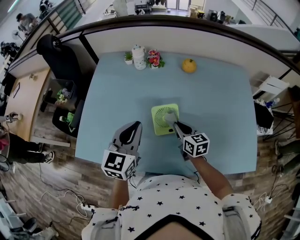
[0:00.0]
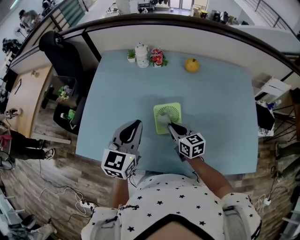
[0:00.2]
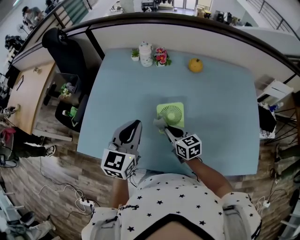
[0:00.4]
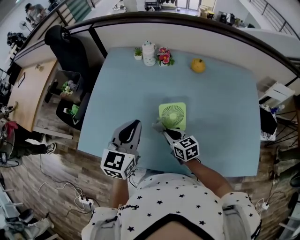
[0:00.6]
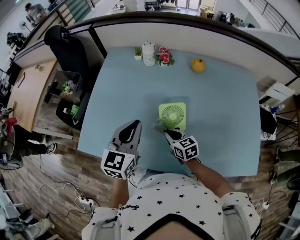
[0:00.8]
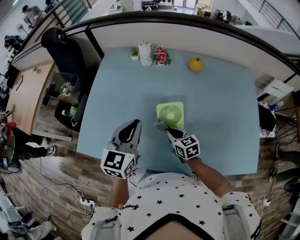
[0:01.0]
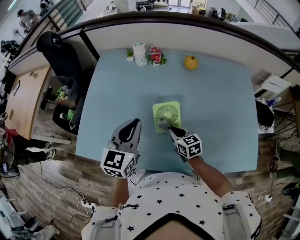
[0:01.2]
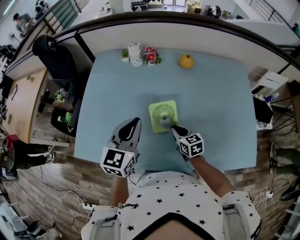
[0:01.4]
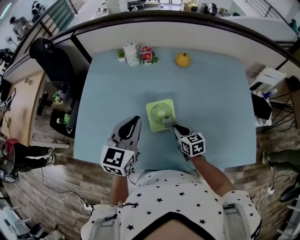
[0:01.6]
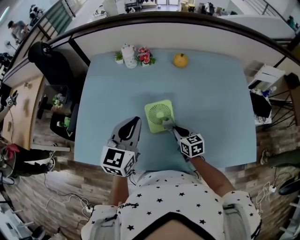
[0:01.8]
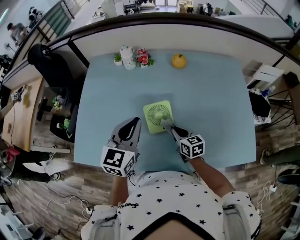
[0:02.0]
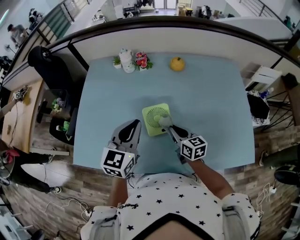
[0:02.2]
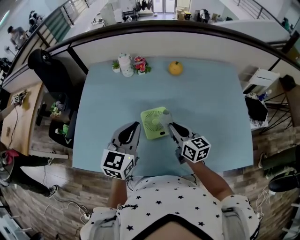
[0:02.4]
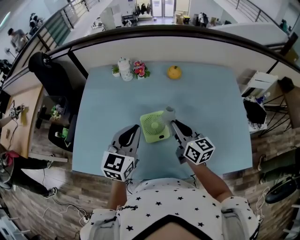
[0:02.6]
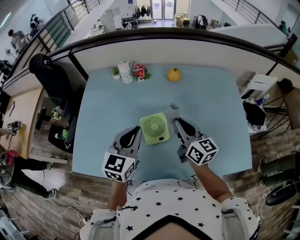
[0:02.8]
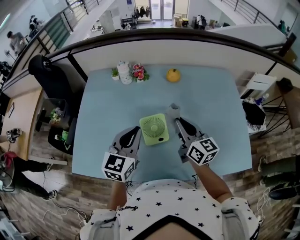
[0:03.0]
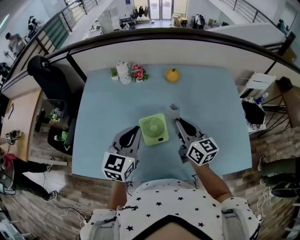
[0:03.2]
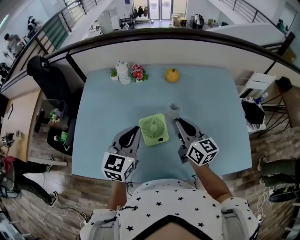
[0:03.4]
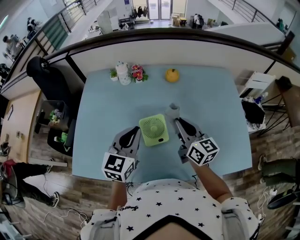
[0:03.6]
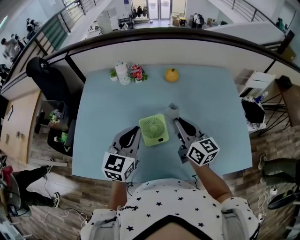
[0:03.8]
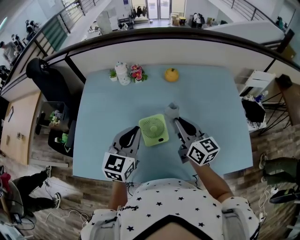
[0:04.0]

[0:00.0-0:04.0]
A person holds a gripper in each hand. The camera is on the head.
0:00.0 to 0:01.4: The right gripper goes to the left and returns, roughly 10 cm each way.
0:01.4 to 0:02.6: The right gripper moves upward, approximately 15 cm, and swivels some 30 degrees.
0:02.6 to 0:04.0: There are only small adjustments of the grippers.

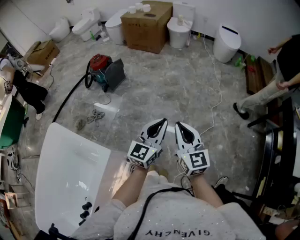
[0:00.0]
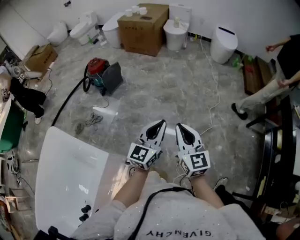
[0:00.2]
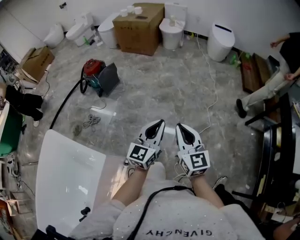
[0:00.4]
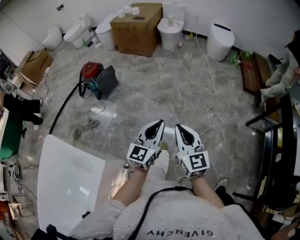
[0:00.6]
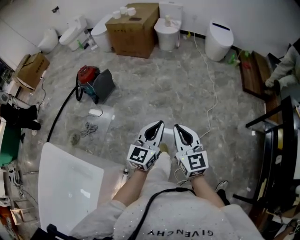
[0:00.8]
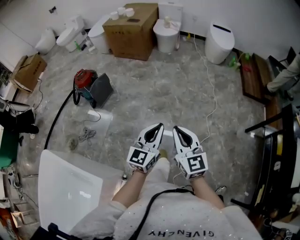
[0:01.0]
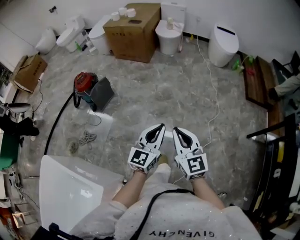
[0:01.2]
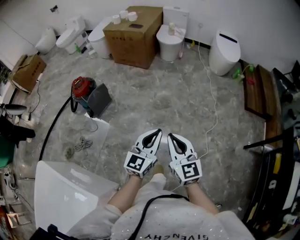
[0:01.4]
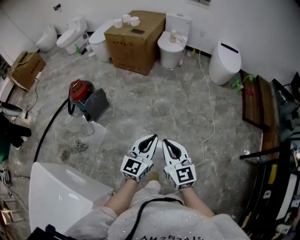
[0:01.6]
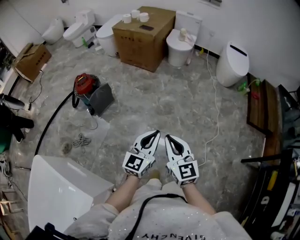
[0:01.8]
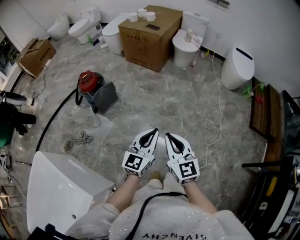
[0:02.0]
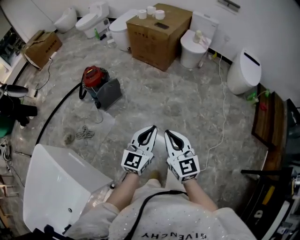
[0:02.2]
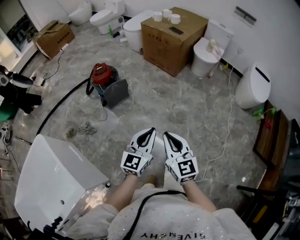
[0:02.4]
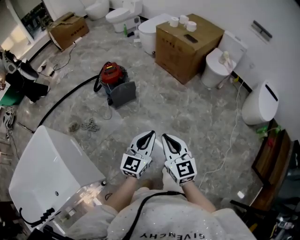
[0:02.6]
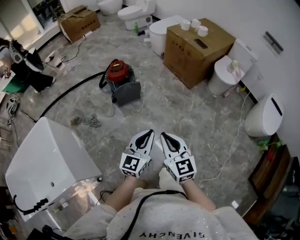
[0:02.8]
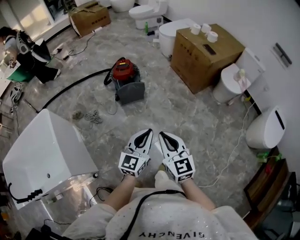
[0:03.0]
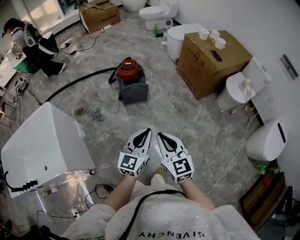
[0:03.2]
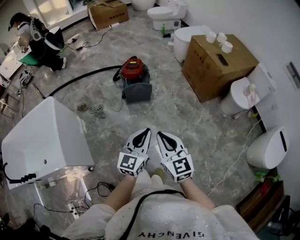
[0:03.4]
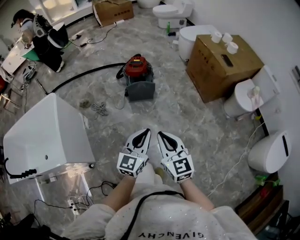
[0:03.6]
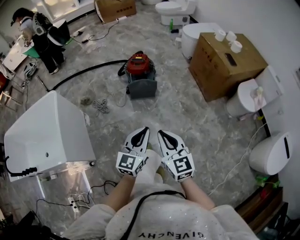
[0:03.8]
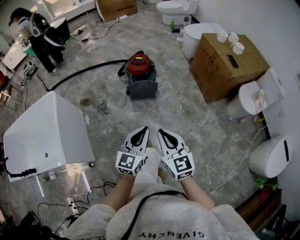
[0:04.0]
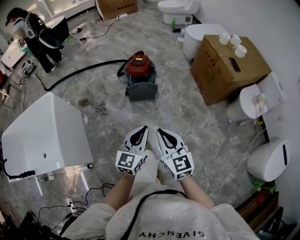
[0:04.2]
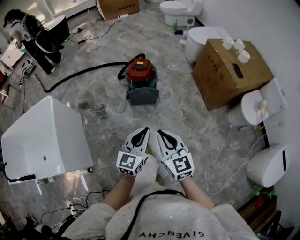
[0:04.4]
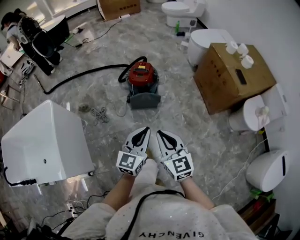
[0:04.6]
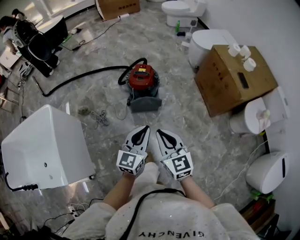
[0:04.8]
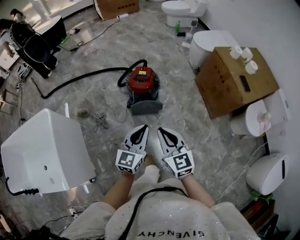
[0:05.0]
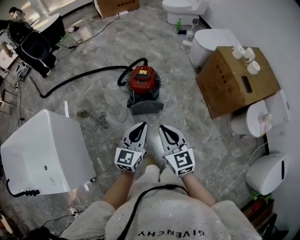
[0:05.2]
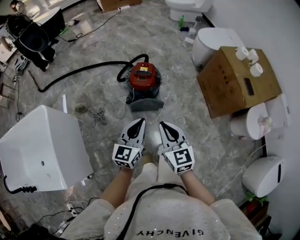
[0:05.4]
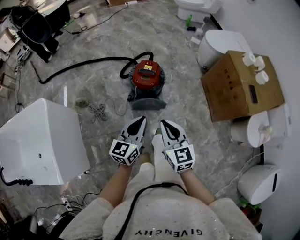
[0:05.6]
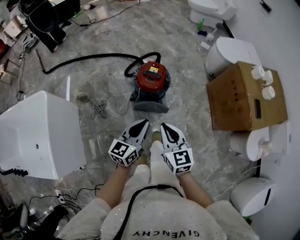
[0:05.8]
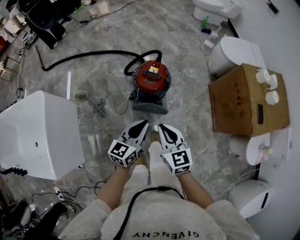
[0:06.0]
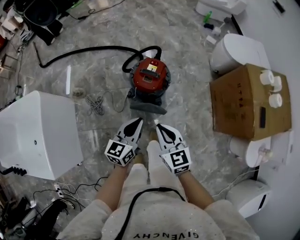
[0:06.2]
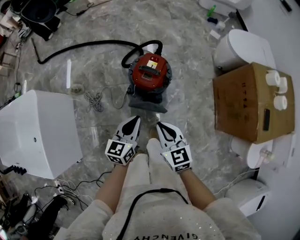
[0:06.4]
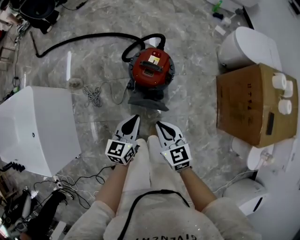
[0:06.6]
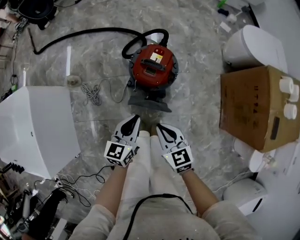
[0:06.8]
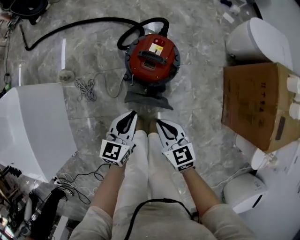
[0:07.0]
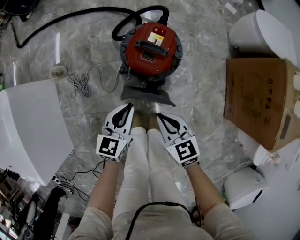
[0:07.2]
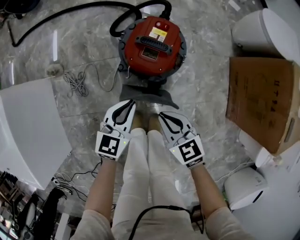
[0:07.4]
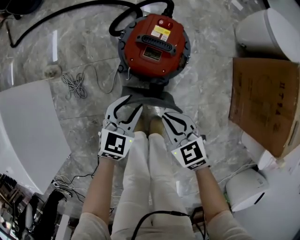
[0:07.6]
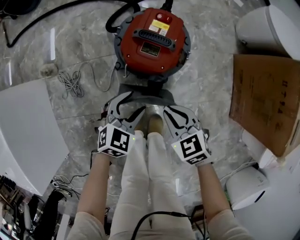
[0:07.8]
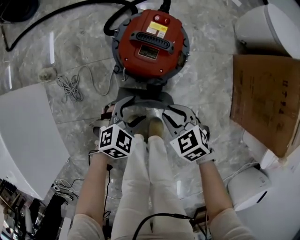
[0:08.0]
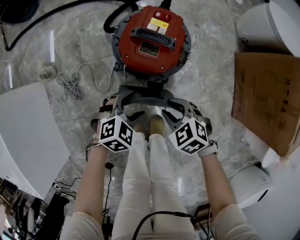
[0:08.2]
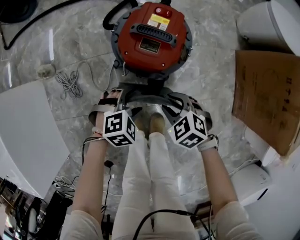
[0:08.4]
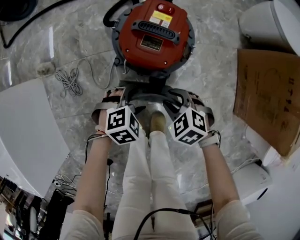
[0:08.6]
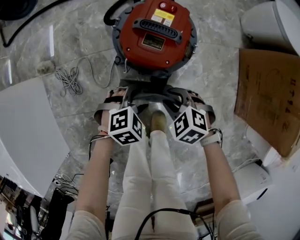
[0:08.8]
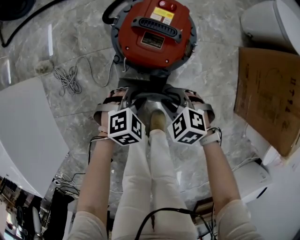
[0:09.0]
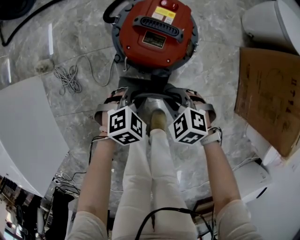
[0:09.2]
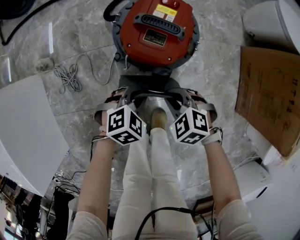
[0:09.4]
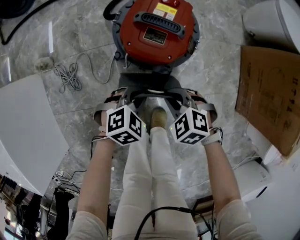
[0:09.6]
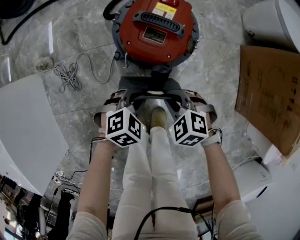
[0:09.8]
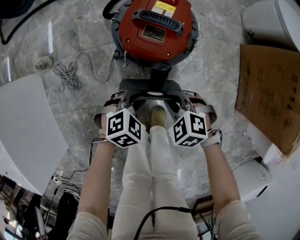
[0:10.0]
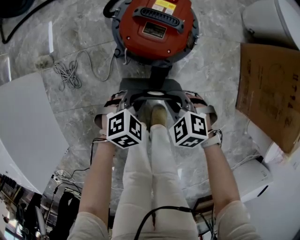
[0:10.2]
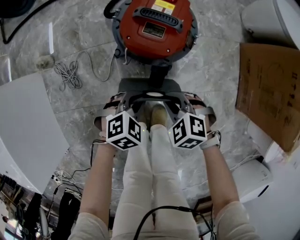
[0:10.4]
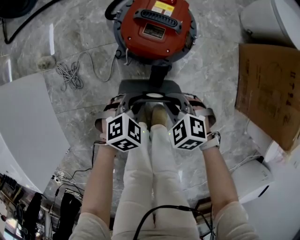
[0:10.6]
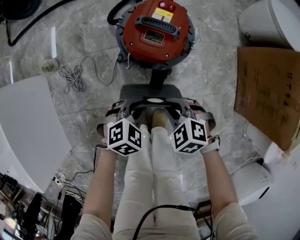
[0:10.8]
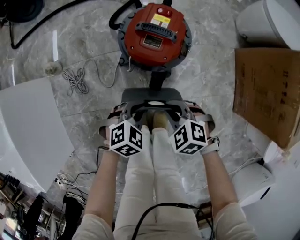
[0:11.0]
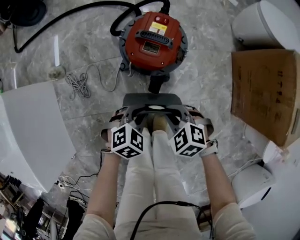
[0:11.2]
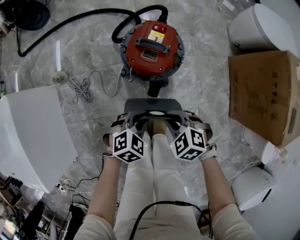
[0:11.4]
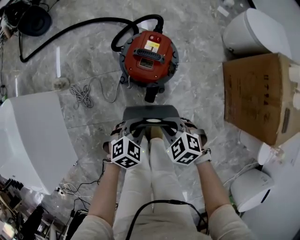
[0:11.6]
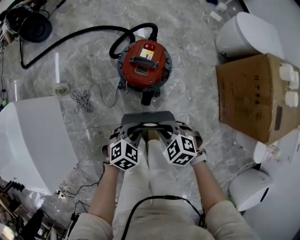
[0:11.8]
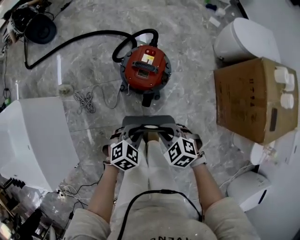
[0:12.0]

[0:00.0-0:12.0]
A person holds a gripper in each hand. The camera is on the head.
0:00.0 to 0:01.6: The grippers both shift forward by about 30 cm.
0:01.6 to 0:03.0: The right gripper changes place by approximately 25 cm, and turns by roughly 40 degrees; the left gripper changes place by some 20 cm, and rotates roughly 40 degrees.
0:03.0 to 0:04.4: Both grippers move forward, approximately 15 cm.
0:04.4 to 0:06.0: The grippers both shift forward by some 30 cm.
0:06.0 to 0:07.6: The left gripper is displaced downward and forward by some 30 cm, turns by about 30 degrees, and opens. The right gripper travels downward by approximately 30 cm, and changes its angle by roughly 30 degrees.
0:07.6 to 0:09.0: Both grippers travel together downward, approximately 10 cm. The left gripper changes its angle by roughly 40 degrees, and opens, then closes again. The right gripper turns by approximately 30 degrees, and opens.
0:09.0 to 0:10.4: The right gripper closes its fingers.
0:10.4 to 0:12.0: Both grippers move upward, some 20 cm.

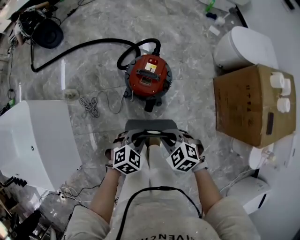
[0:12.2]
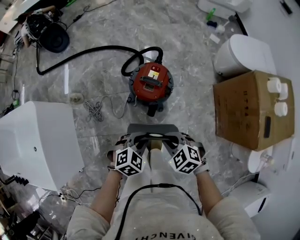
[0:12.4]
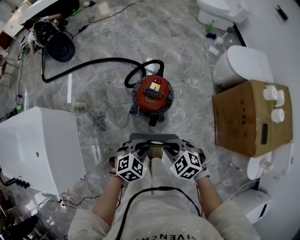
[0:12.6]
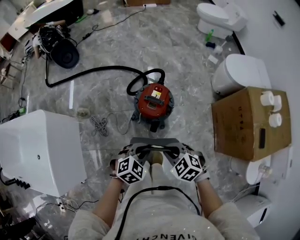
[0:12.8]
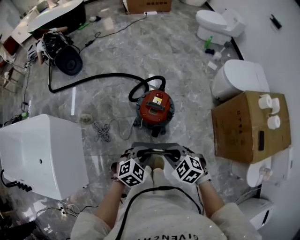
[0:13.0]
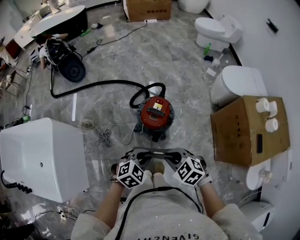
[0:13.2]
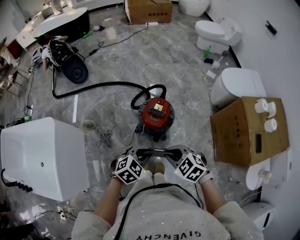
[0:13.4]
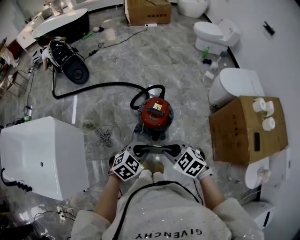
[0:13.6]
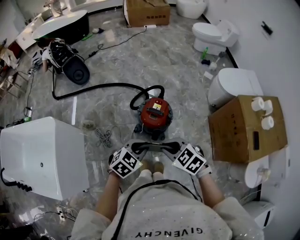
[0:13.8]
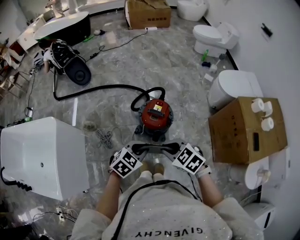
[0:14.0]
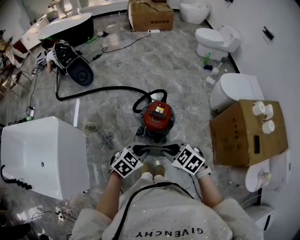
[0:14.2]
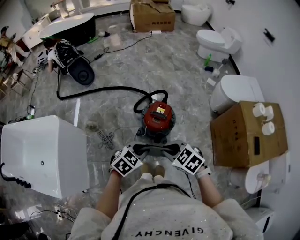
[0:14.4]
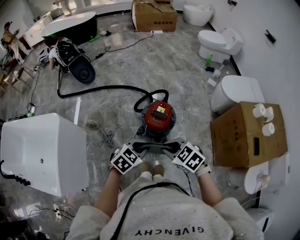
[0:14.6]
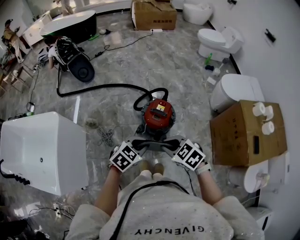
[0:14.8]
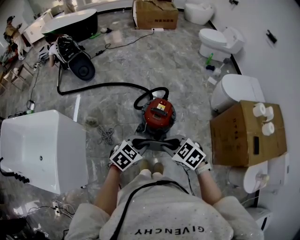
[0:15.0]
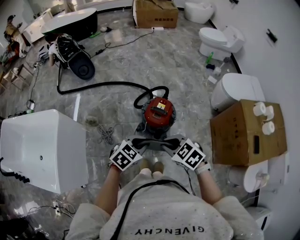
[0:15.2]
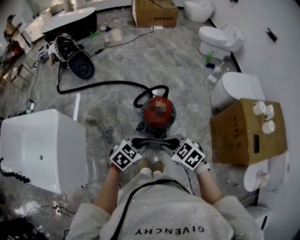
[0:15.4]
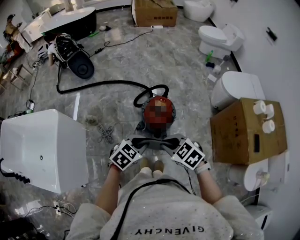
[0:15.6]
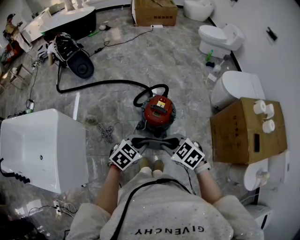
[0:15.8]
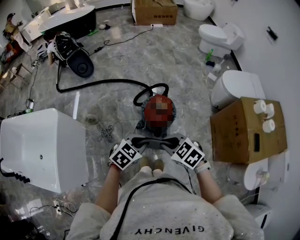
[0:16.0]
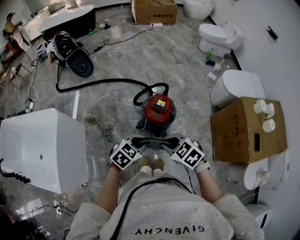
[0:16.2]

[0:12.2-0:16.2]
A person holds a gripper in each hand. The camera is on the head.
0:12.2 to 0:13.6: Both grippers travel together upward, some 20 cm.
0:13.6 to 0:16.2: There are only small adjustments of the grippers.

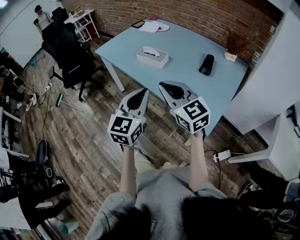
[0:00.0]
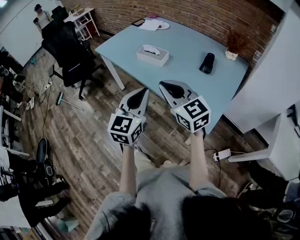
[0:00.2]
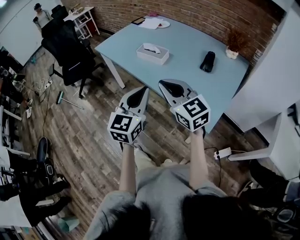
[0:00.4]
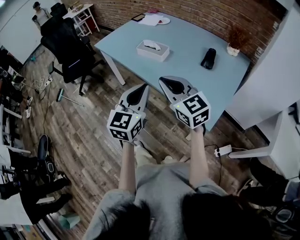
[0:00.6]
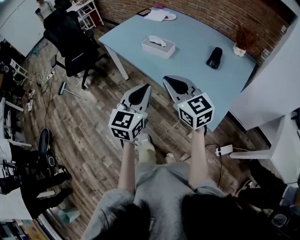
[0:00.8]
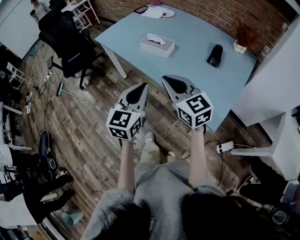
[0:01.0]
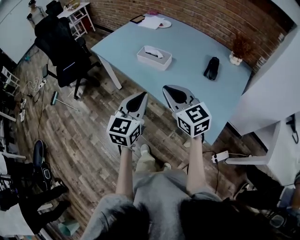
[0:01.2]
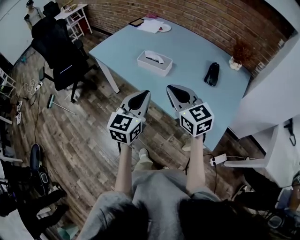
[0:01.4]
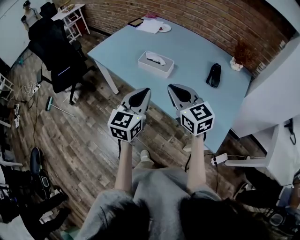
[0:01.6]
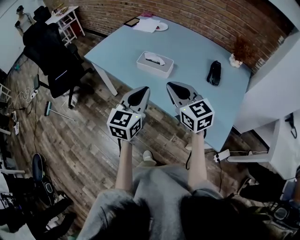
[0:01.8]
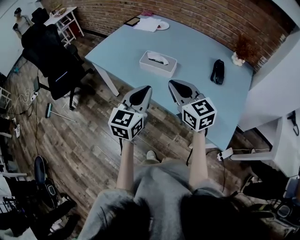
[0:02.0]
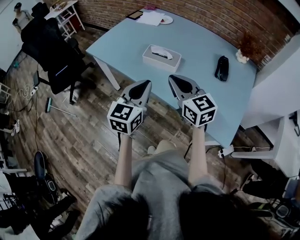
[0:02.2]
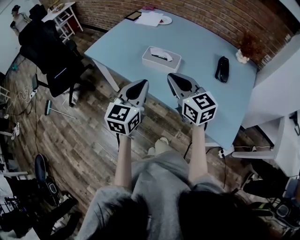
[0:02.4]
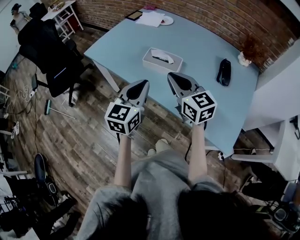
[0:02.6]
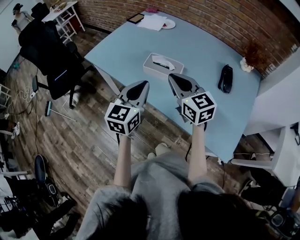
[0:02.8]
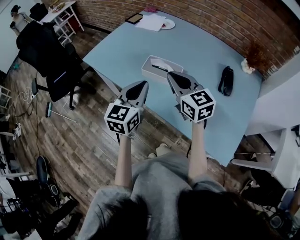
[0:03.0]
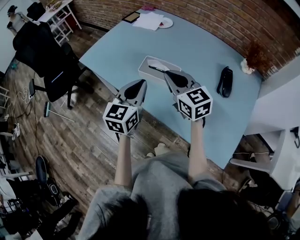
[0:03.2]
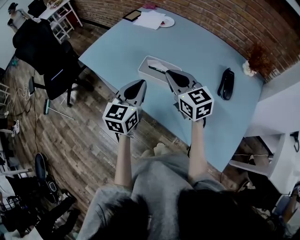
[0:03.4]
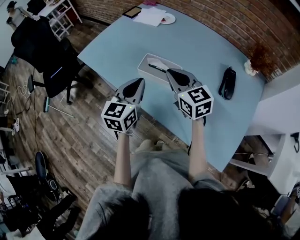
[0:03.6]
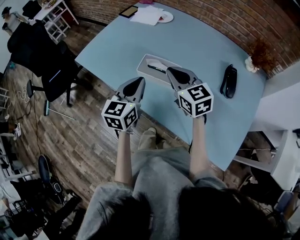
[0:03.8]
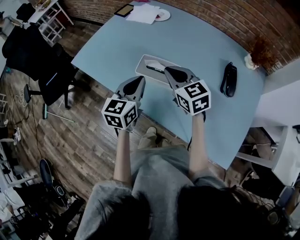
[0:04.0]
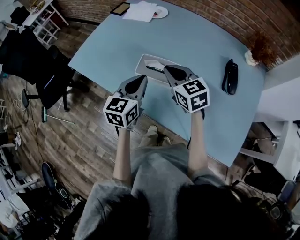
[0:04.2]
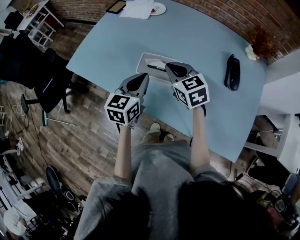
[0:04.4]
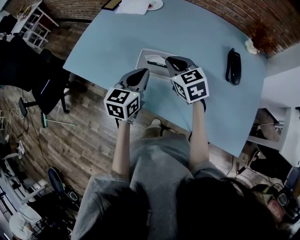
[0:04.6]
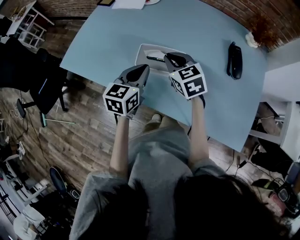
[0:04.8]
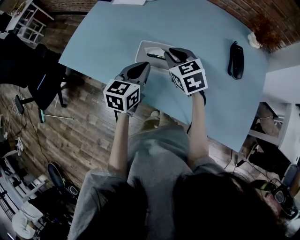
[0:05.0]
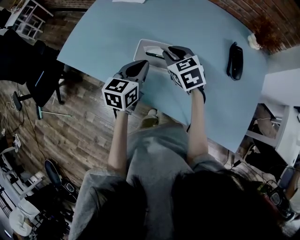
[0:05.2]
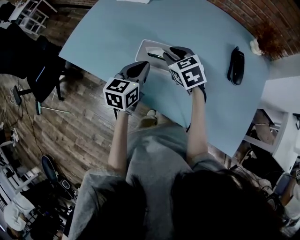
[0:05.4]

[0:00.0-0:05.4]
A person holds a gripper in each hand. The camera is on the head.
0:00.0 to 0:01.4: The grippers both shift forward by some 10 cm.
0:01.4 to 0:02.8: The right gripper moves forward, about 15 cm, while the left gripper heads forward and to the left, covering roughly 15 cm.
0:02.8 to 0:04.0: The right gripper is displaced forward and downward by about 15 cm; the left gripper goes some 15 cm forward.
0:04.0 to 0:05.4: Both grippers travel together downward and forward, roughly 10 cm. The right gripper turns by about 20 degrees, and opens its fingers.
